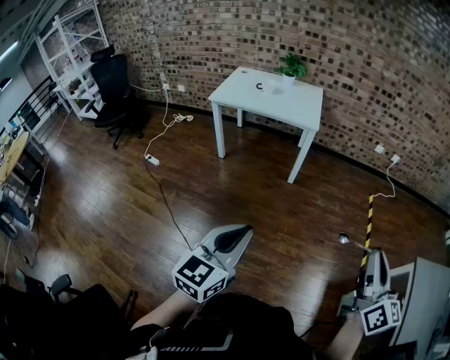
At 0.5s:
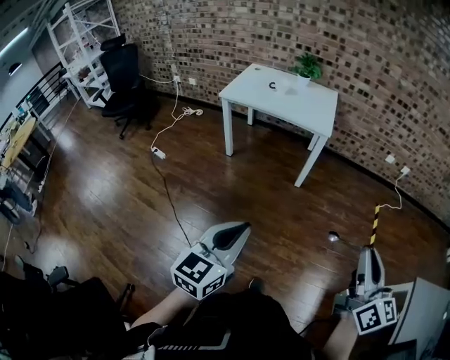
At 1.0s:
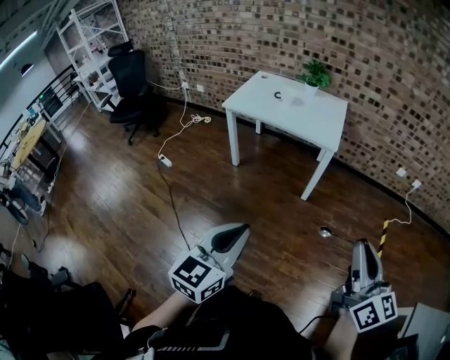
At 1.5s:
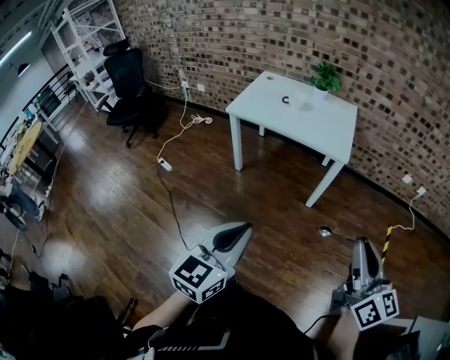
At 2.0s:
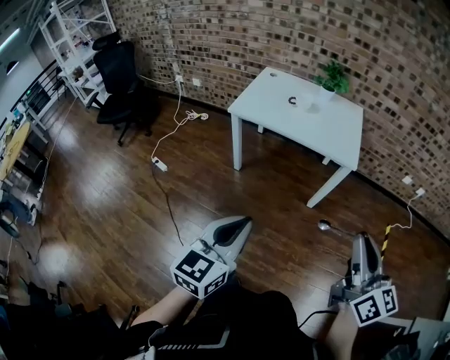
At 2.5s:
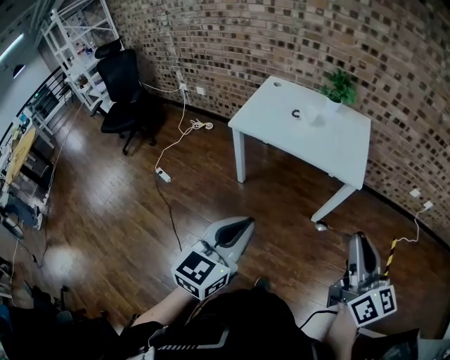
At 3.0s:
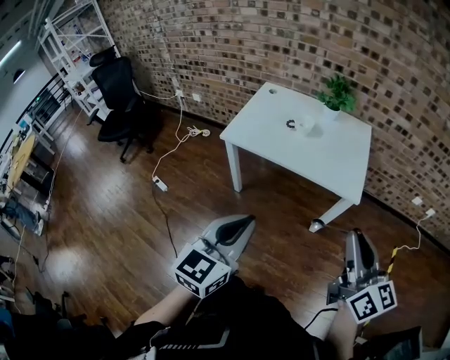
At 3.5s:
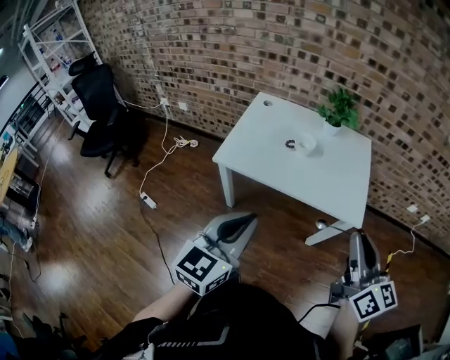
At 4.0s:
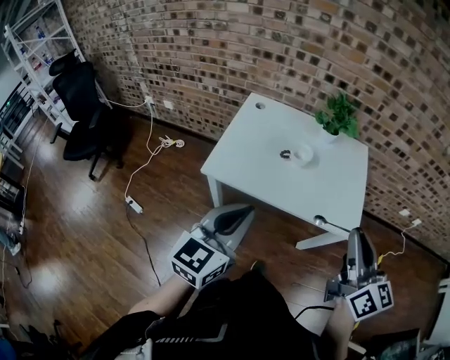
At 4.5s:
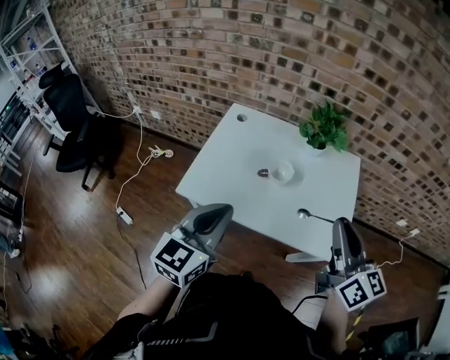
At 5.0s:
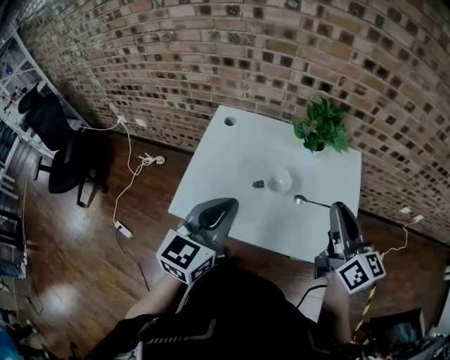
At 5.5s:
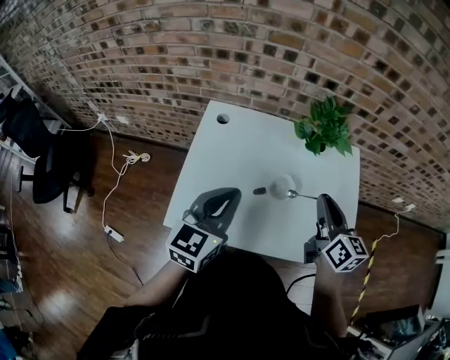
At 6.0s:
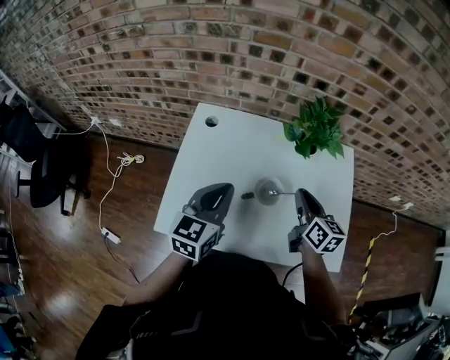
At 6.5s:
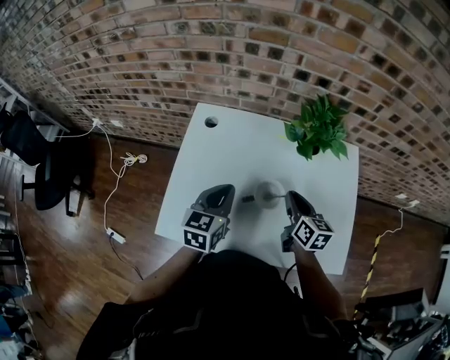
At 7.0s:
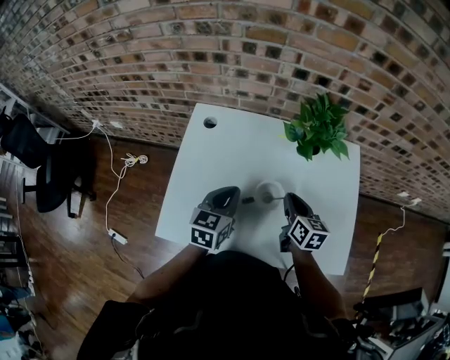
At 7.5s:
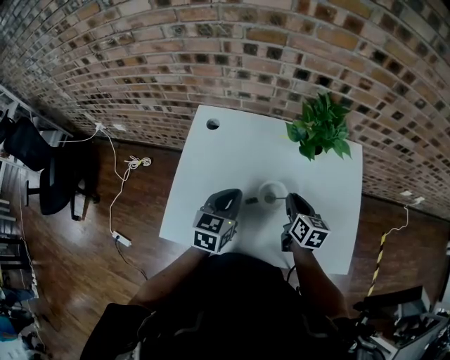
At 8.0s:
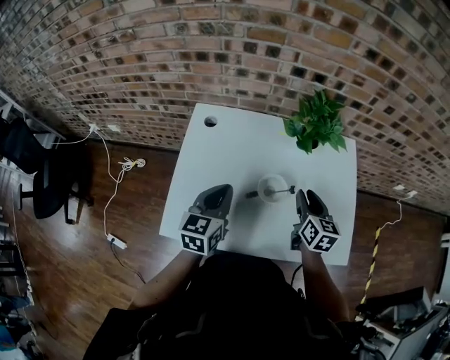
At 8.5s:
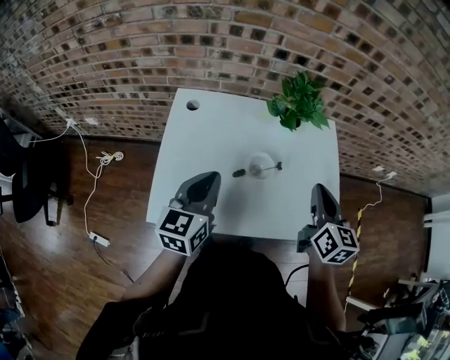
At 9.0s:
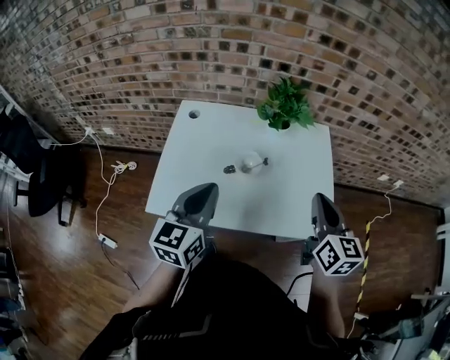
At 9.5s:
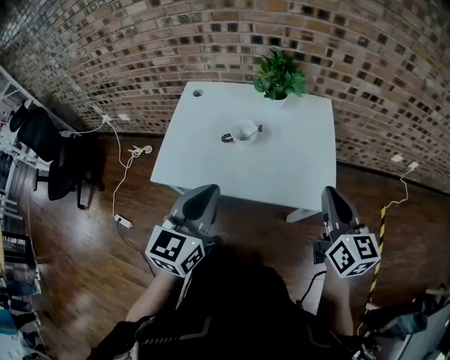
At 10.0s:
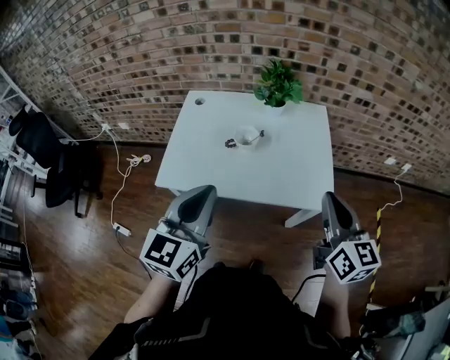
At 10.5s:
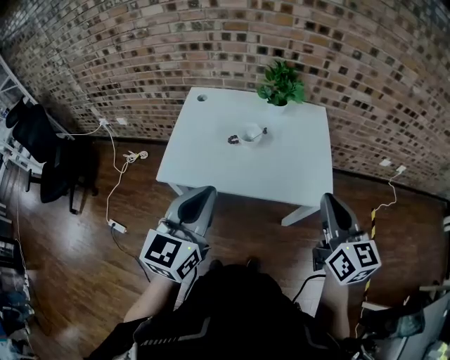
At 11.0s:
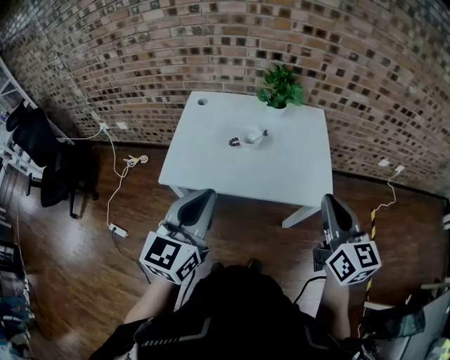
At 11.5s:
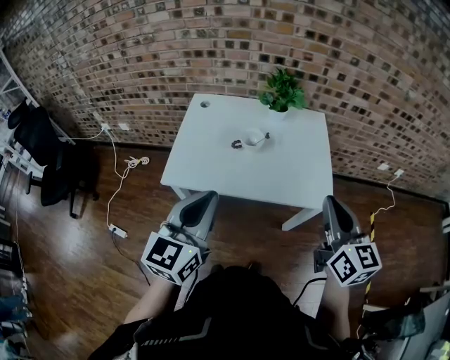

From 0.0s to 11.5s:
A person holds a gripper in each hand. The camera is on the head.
From 0.0s to 2.0s: The grippers both shift forward and to the left by about 35 cm.
From 2.0s to 4.0s: The two grippers travel together, forward, about 40 cm.
From 4.0s to 6.0s: The right gripper goes about 40 cm forward and downward, and rotates about 20 degrees. Meanwhile the left gripper heads forward, covering approximately 35 cm.
From 6.0s to 7.5s: The grippers both shift downward by about 10 cm.
From 7.5s to 9.5s: The grippers both shift backward, upward and to the right by approximately 35 cm. The right gripper turns by about 20 degrees, and opens, then closes again.
From 9.5s to 11.5s: The left gripper is displaced backward and to the left by roughly 10 cm; the right gripper goes roughly 10 cm backward, to the left and upward.

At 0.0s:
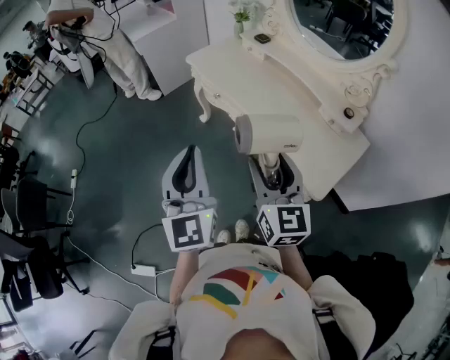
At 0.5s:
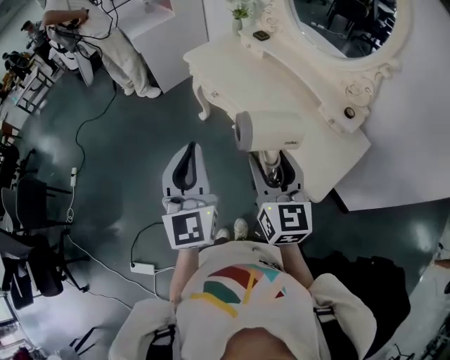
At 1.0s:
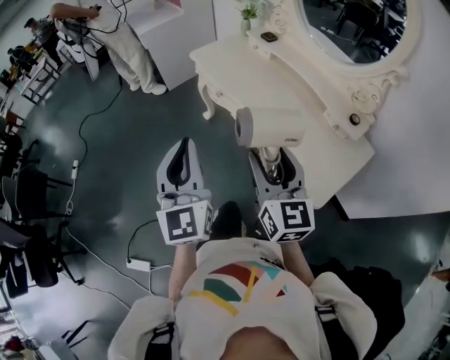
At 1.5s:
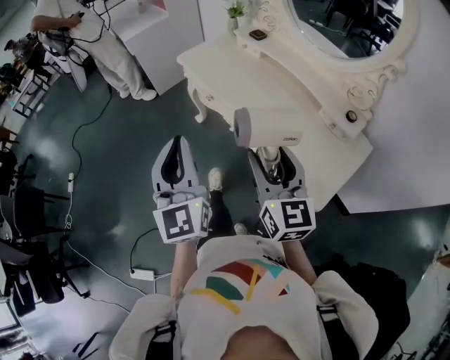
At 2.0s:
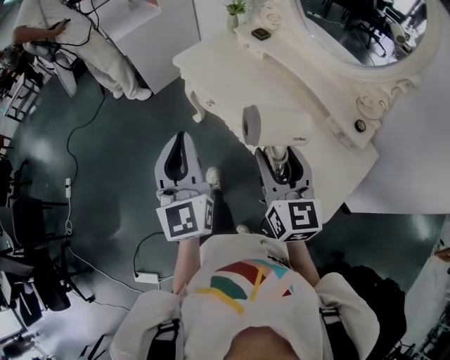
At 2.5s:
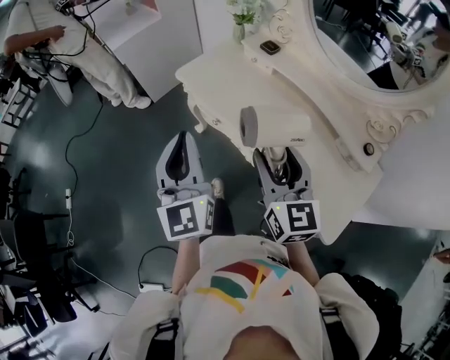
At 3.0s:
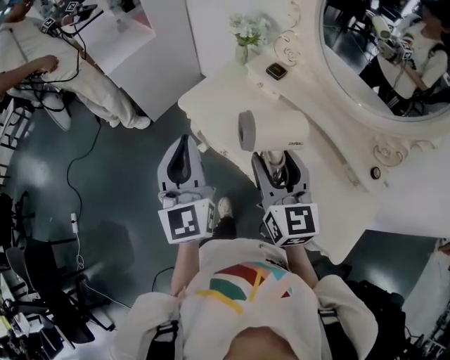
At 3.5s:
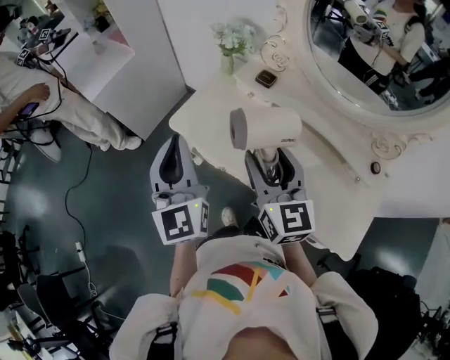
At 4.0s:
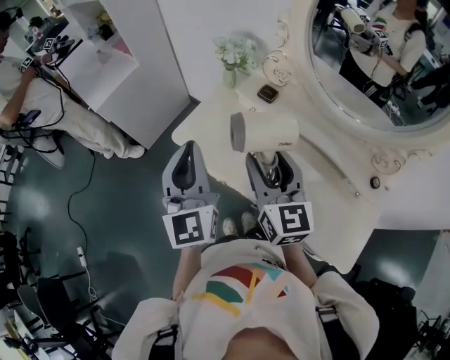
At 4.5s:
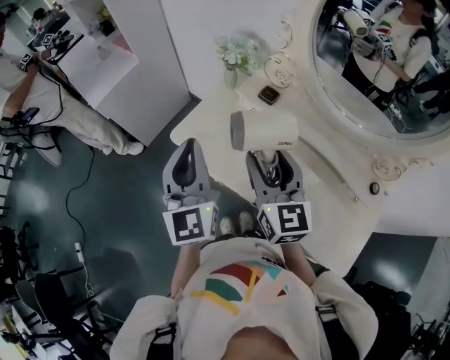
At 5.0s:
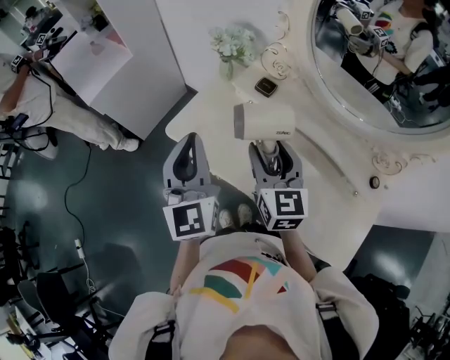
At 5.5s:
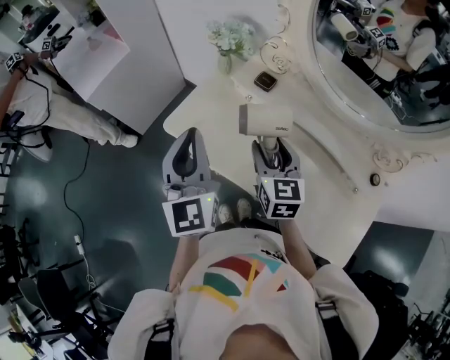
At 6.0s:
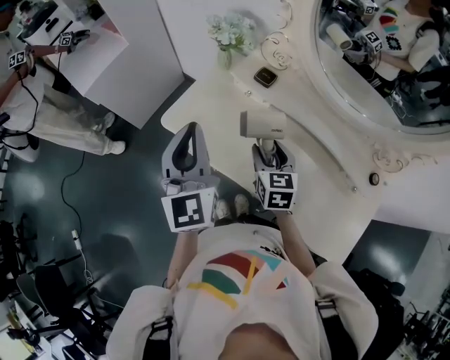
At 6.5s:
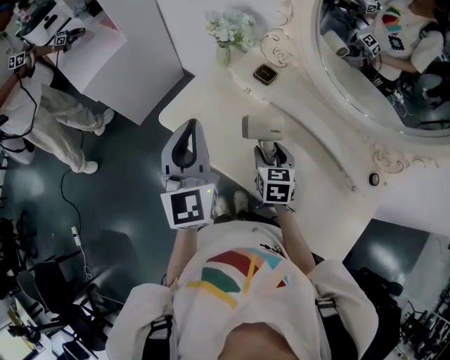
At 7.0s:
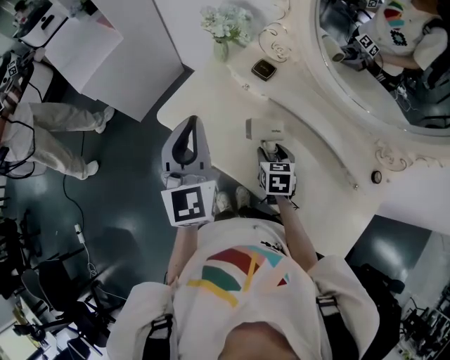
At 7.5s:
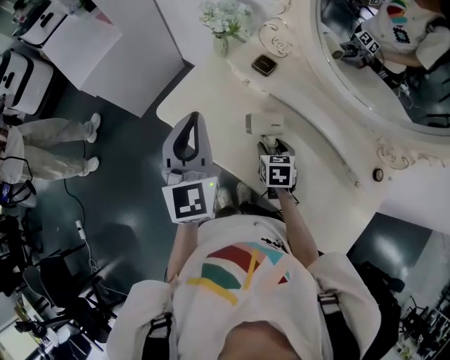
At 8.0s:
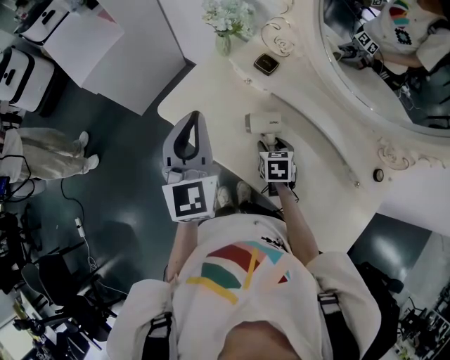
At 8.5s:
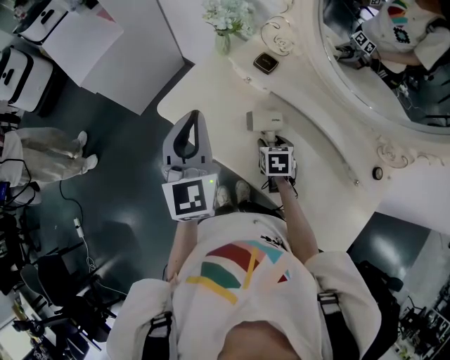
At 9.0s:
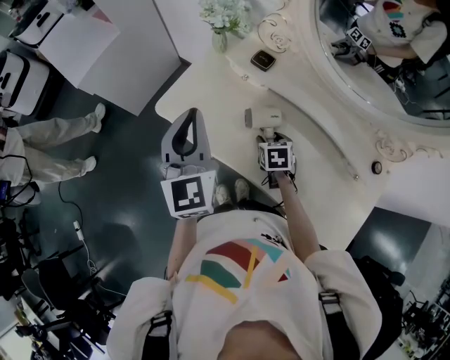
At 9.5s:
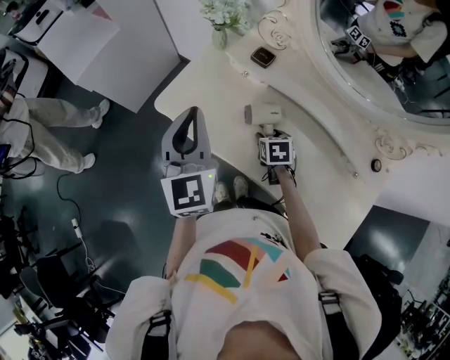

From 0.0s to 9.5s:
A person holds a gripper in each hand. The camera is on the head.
From 0.0s to 2.0s: Both grippers travel together forward, some 15 cm.
From 2.0s to 4.0s: Both grippers travel together forward, approximately 30 cm.
From 4.0s to 5.5s: The right gripper goes about 10 cm downward.
From 5.5s to 7.5s: The left gripper shifts by some 5 cm. The right gripper travels downward by approximately 20 cm, and angles its fingers downward, by some 30 degrees.
From 7.5s to 9.5s: The grippers make only small movements.

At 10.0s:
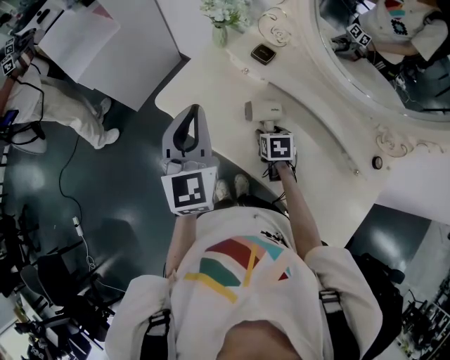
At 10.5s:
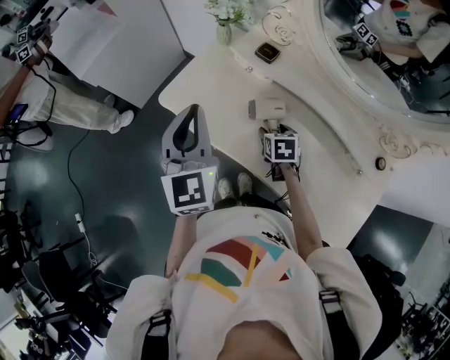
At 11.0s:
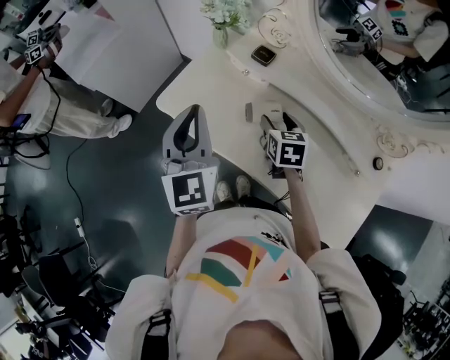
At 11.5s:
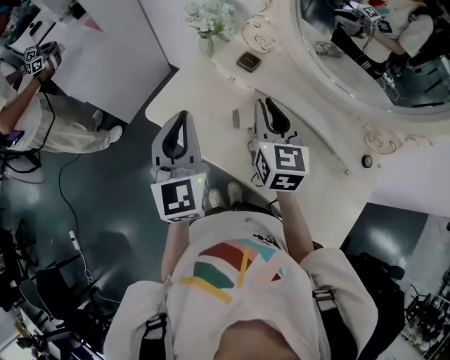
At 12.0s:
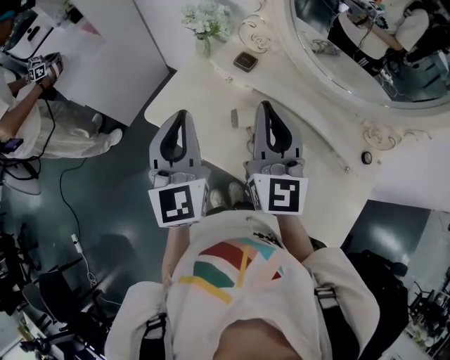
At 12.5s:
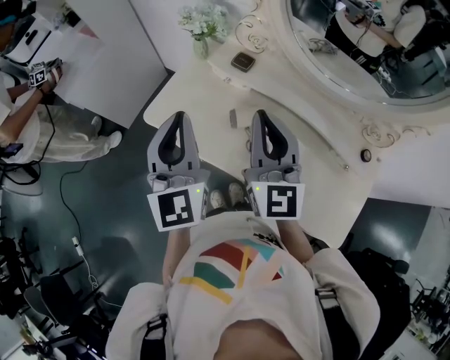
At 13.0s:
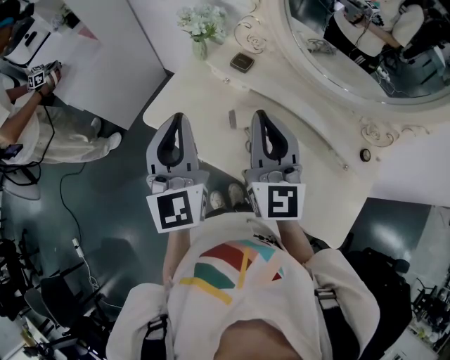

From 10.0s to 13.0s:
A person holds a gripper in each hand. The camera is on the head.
From 10.0s to 11.5s: The right gripper is displaced upward by some 25 cm, tilts its fingers roughly 40 degrees upward, and closes up.
From 11.5s to 13.0s: The right gripper heads upward and backward, covering approximately 10 cm, and swivels approximately 20 degrees.

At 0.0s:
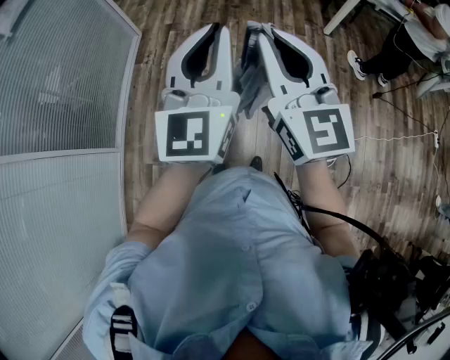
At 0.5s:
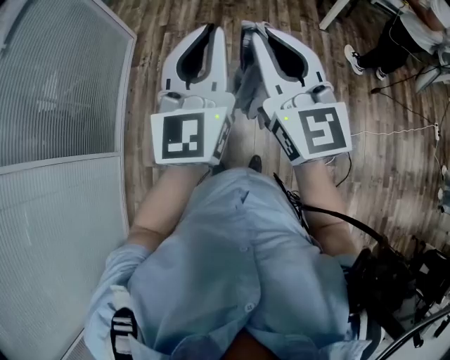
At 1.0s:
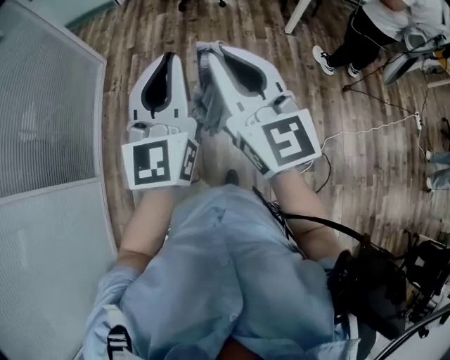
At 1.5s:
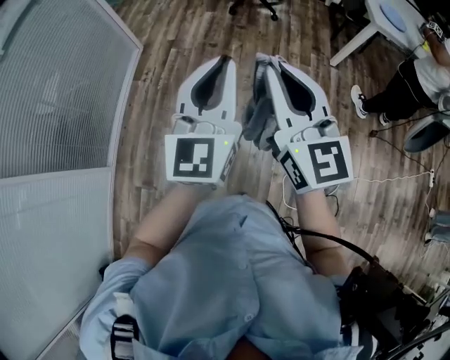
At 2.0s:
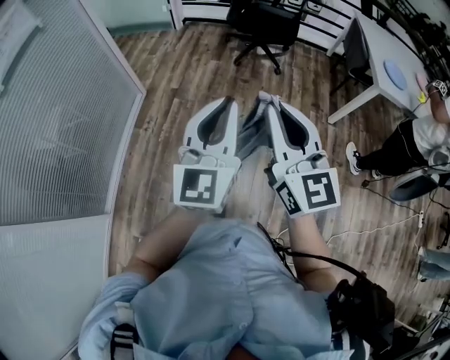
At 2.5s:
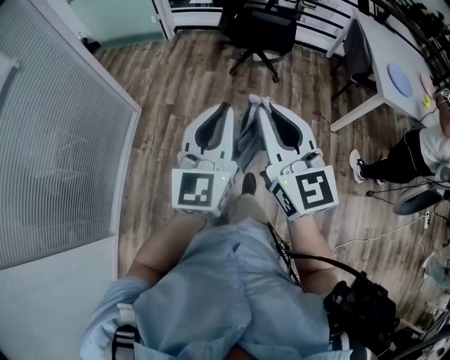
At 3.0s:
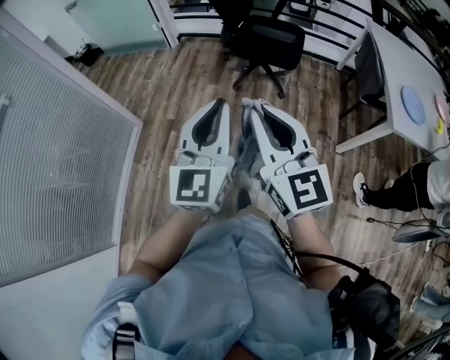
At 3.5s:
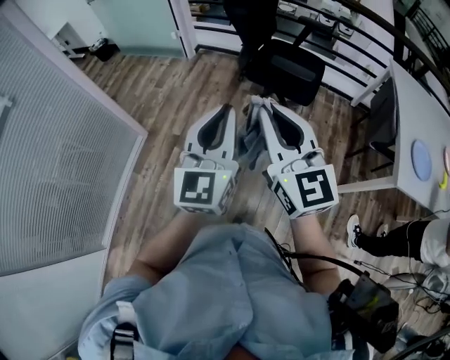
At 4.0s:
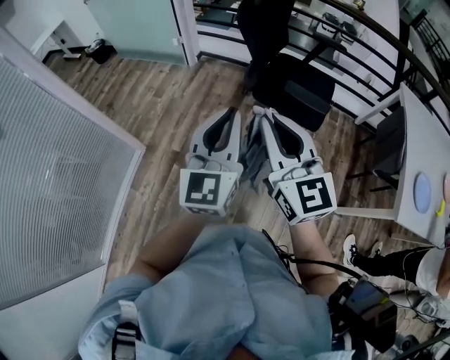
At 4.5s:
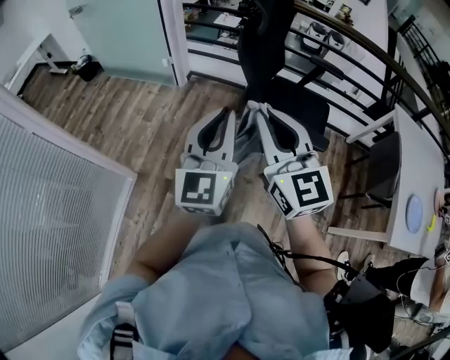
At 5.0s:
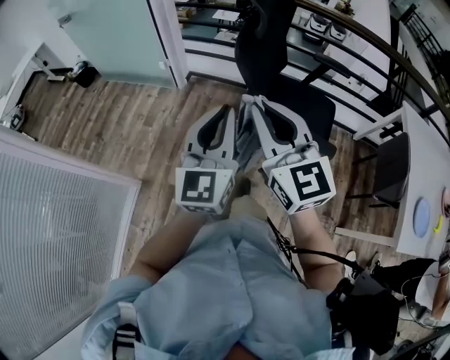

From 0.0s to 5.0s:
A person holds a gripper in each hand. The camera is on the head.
From 0.0s to 2.5s: Both grippers are carried forward, some 50 cm.
From 2.5s to 5.0s: Both grippers are carried forward, roughly 70 cm.
